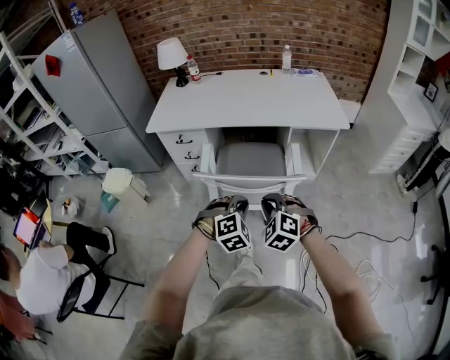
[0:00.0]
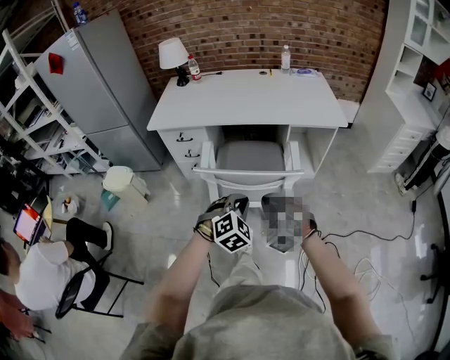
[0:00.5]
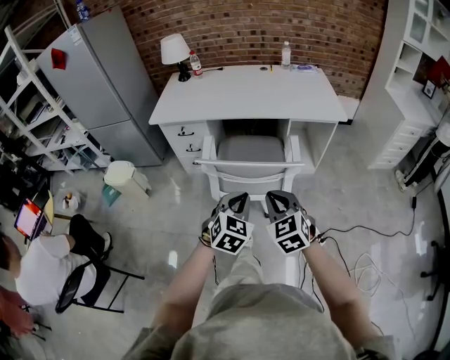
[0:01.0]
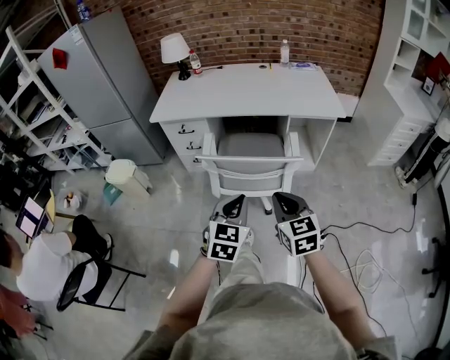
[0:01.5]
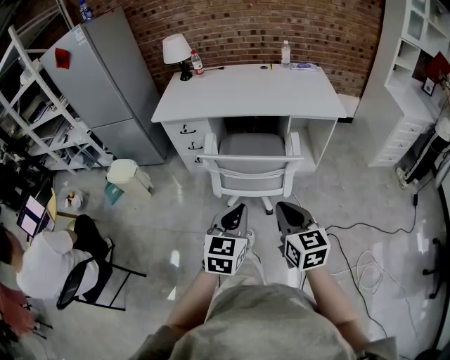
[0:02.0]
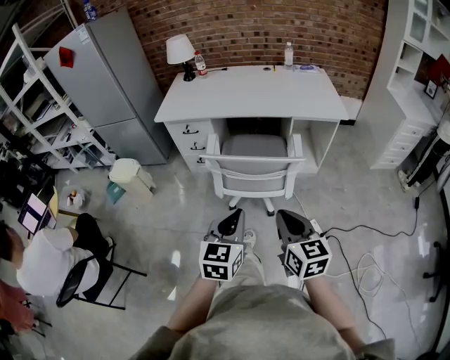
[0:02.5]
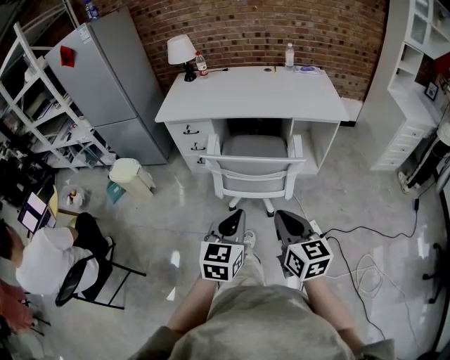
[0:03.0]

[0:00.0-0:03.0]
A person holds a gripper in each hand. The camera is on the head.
0.0 to 1.5 s: Both grippers travel together backward and upward, roughly 10 cm. The left gripper rotates around the line of its fingers by roughly 50 degrees, counterclockwise from behind; the right gripper rotates around the line of its fingers by roughly 50 degrees, clockwise from behind.
1.5 to 3.0 s: Both grippers travel together backward, roughly 5 cm.

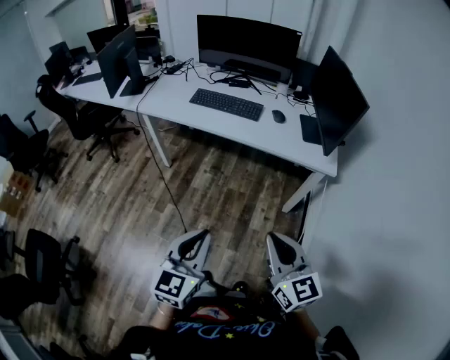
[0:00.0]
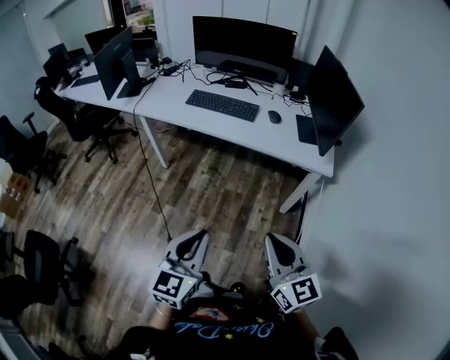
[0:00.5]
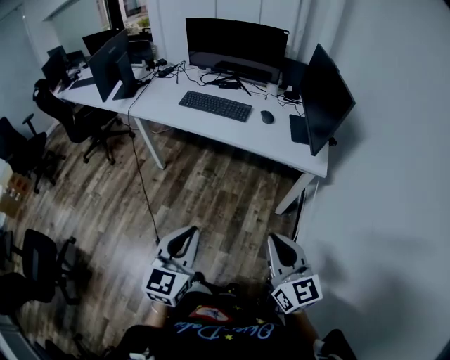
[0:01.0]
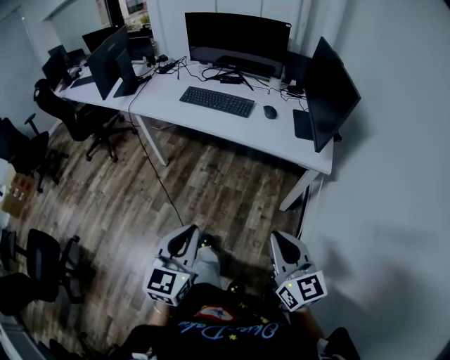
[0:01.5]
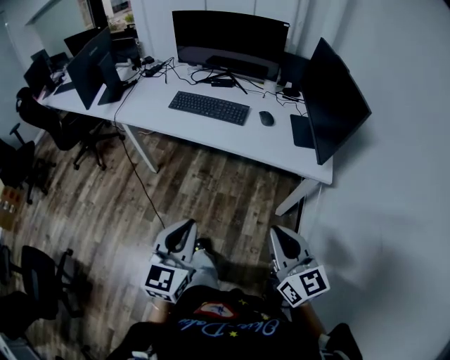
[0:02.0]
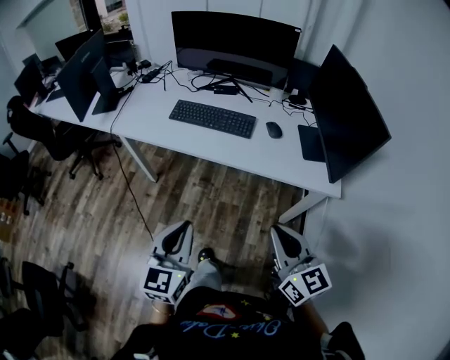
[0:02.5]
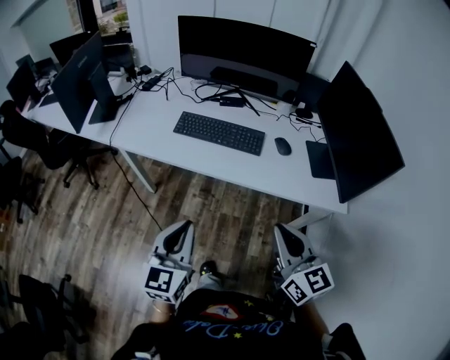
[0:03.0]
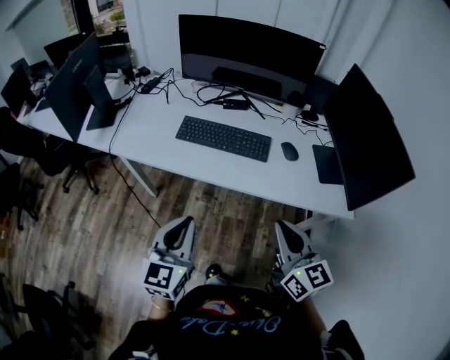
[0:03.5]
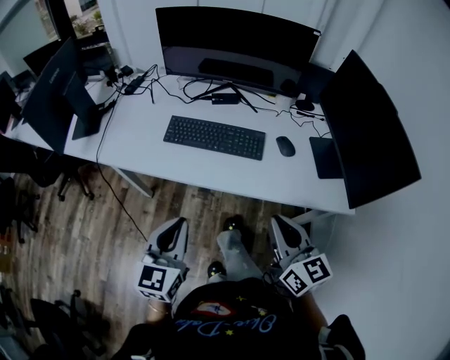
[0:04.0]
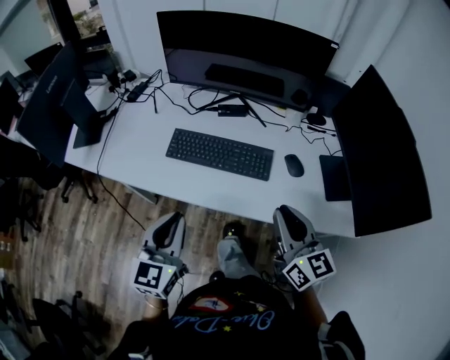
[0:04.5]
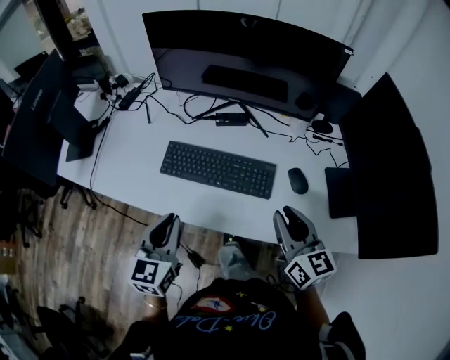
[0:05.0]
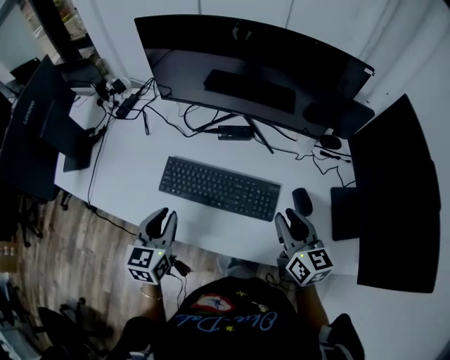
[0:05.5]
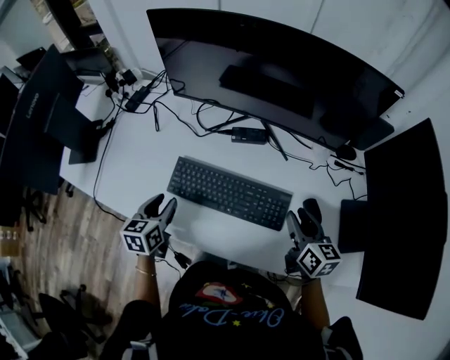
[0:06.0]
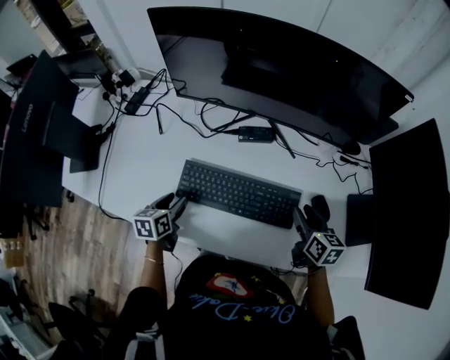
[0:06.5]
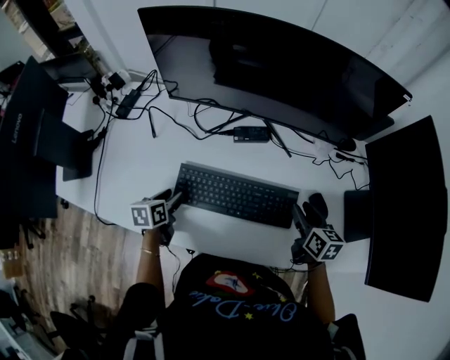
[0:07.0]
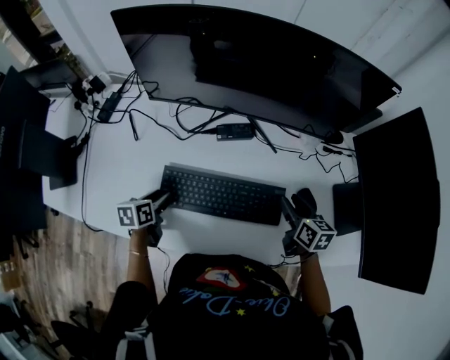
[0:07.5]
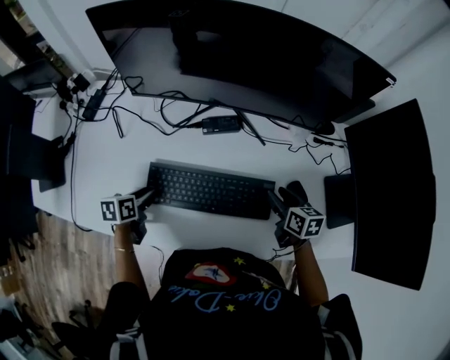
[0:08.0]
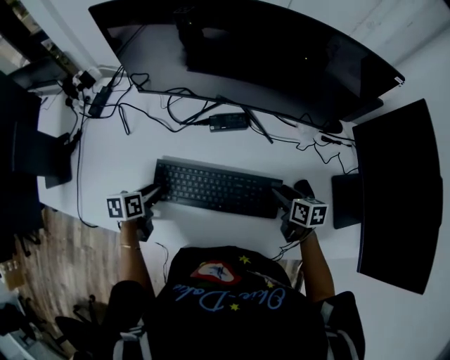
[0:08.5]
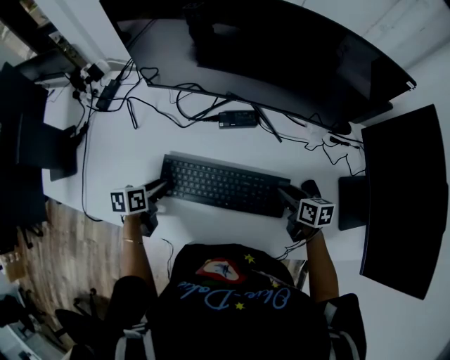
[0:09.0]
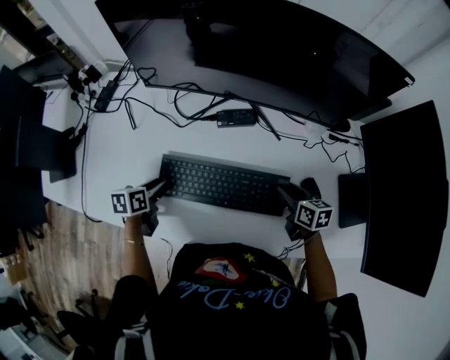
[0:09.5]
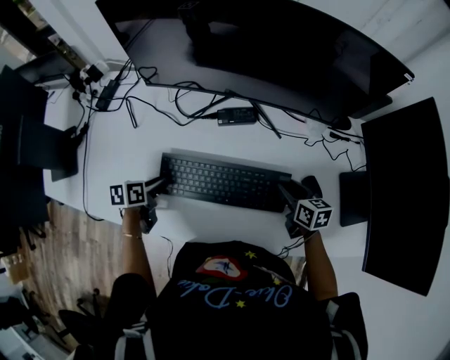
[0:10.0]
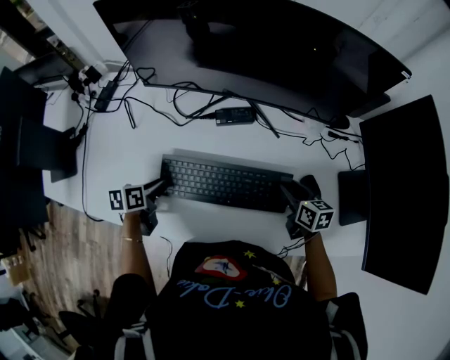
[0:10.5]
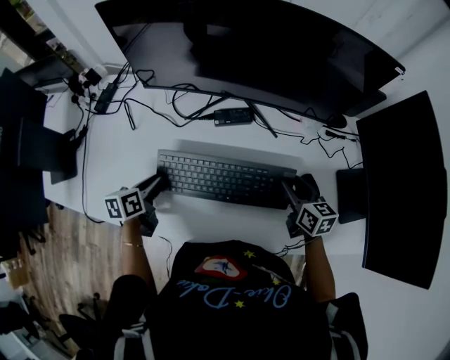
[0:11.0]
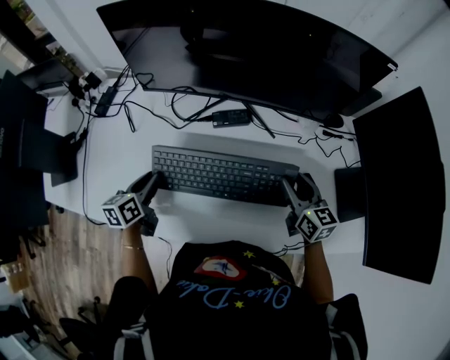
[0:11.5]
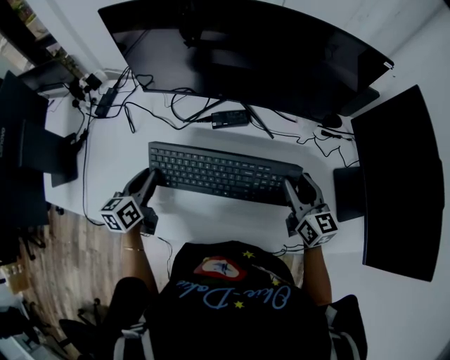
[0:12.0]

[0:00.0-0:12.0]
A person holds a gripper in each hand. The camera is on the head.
0.0 to 2.0 s: The left gripper moves forward, about 10 cm. Meanwhile the right gripper goes roughly 10 cm forward and to the right.
2.0 to 4.0 s: Both grippers travel together forward and to the left, some 30 cm.
4.0 to 6.0 s: The left gripper moves forward and downward, about 35 cm, turns by roughly 30 degrees, and opens. The right gripper shifts roughly 35 cm forward, changes its angle by some 20 degrees, and opens its fingers.
6.0 to 8.0 s: The right gripper moves downward, some 10 cm, while the left gripper shifts about 10 cm downward and forward, and turns by about 30 degrees.
8.0 to 10.0 s: The grippers move only a little.
10.0 to 12.0 s: The two grippers go approximately 10 cm upward. The left gripper rotates roughly 30 degrees, while the right gripper turns by some 30 degrees.

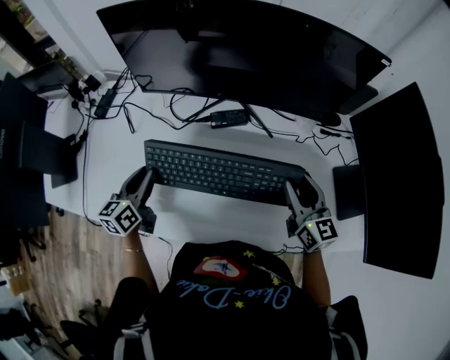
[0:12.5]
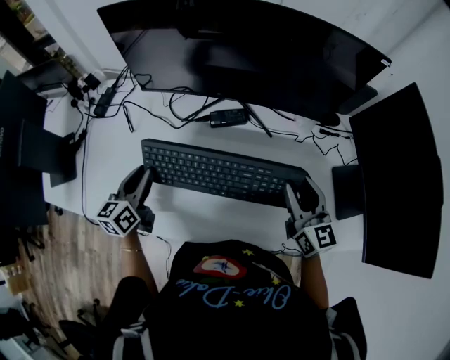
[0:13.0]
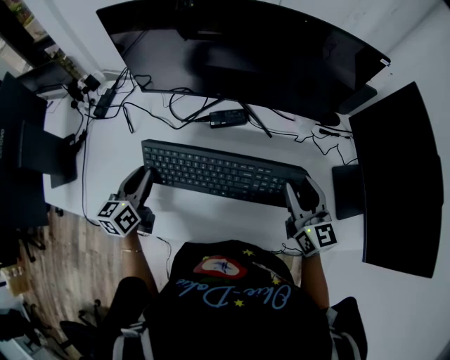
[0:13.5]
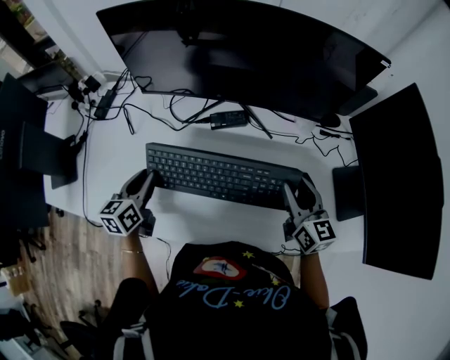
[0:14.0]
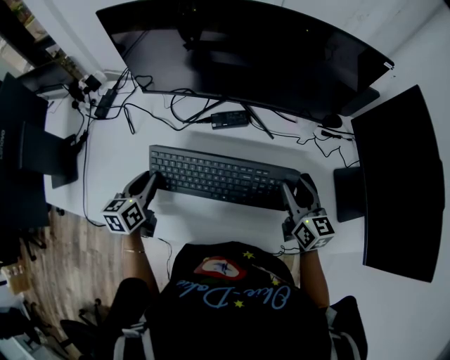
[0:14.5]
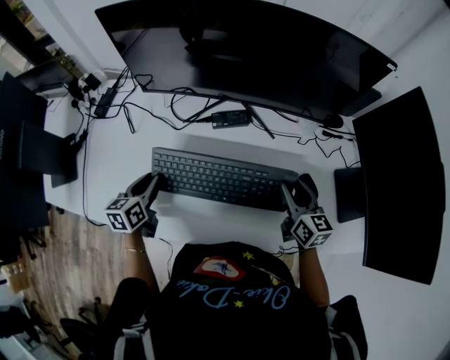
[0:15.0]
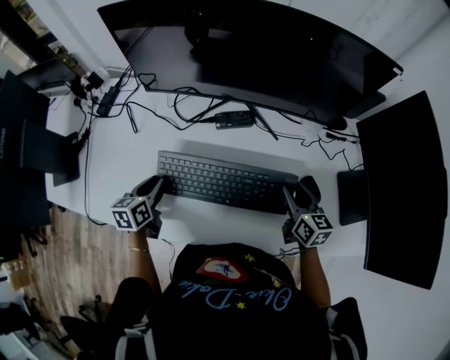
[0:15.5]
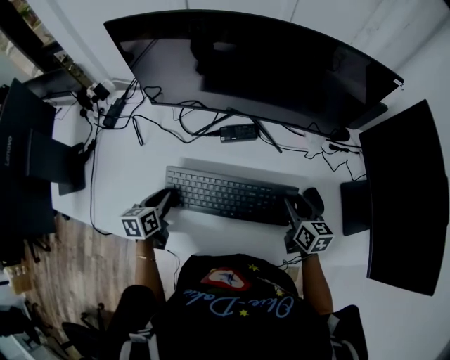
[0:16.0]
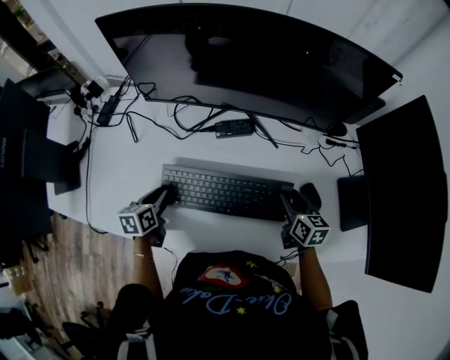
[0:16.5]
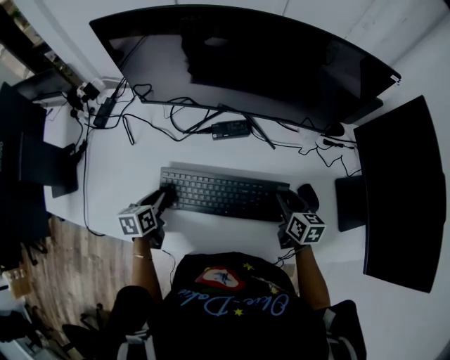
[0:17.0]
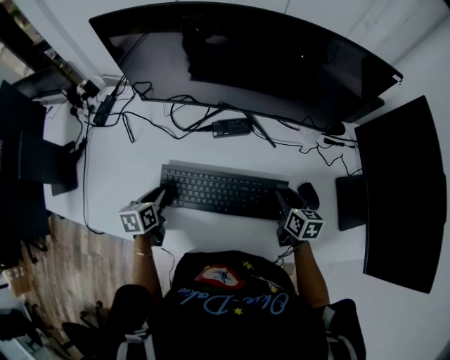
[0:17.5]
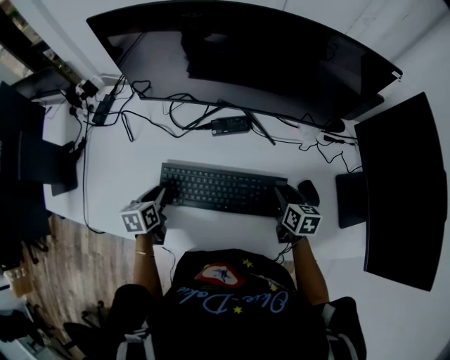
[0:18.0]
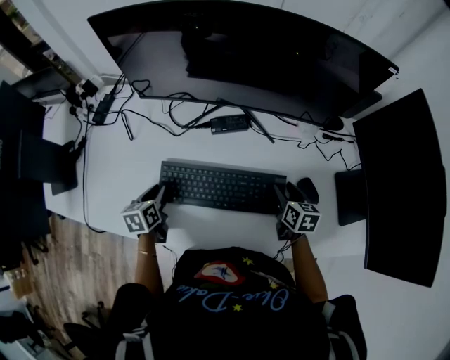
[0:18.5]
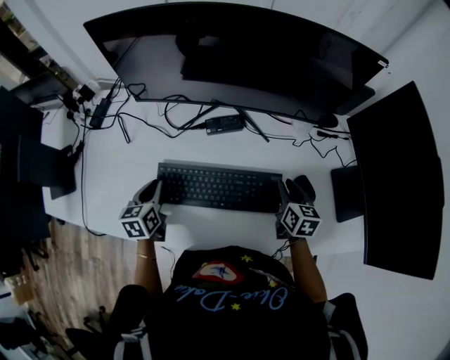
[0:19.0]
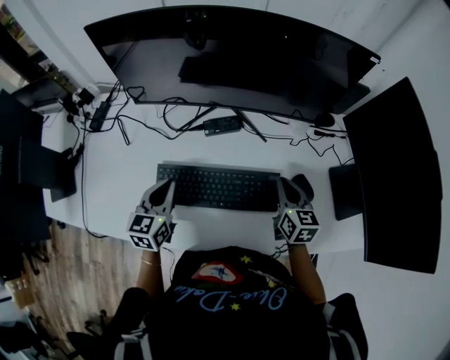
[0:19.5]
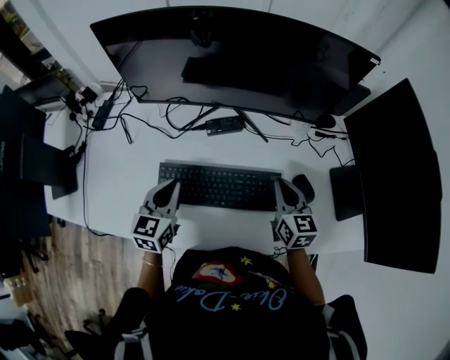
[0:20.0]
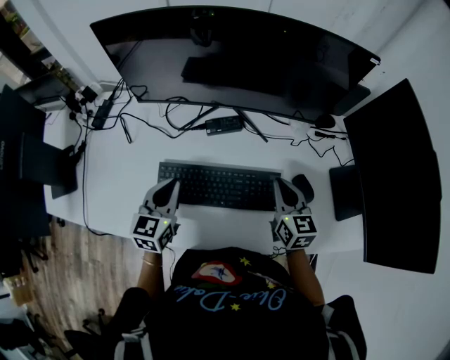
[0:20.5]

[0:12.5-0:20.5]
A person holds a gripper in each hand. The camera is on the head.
12.5 to 14.5 s: The grippers move only a little.
14.5 to 16.5 s: The two grippers go roughly 10 cm downward.
16.5 to 18.5 s: The grippers stay close to where they were, moving slightly.
18.5 to 20.5 s: The left gripper goes approximately 15 cm upward and to the right, swivels some 40 degrees, and closes; the right gripper shifts some 10 cm upward, changes its angle by roughly 20 degrees, and closes its fingers.

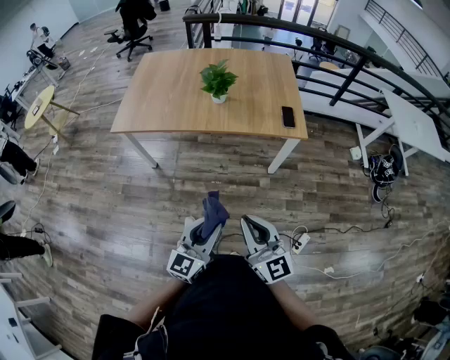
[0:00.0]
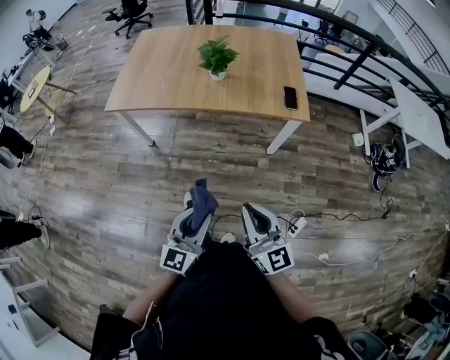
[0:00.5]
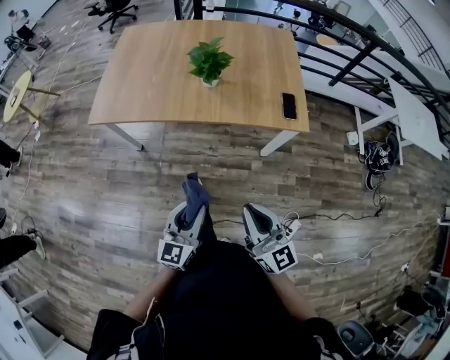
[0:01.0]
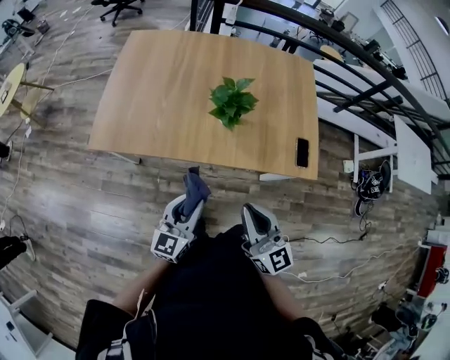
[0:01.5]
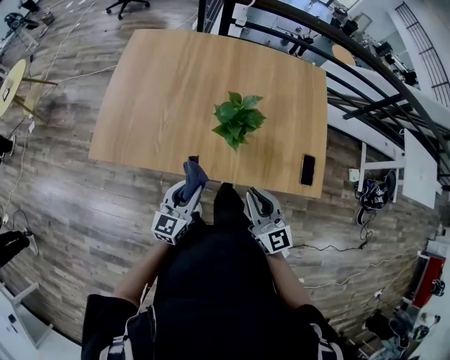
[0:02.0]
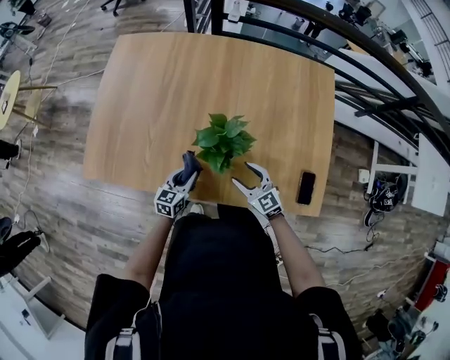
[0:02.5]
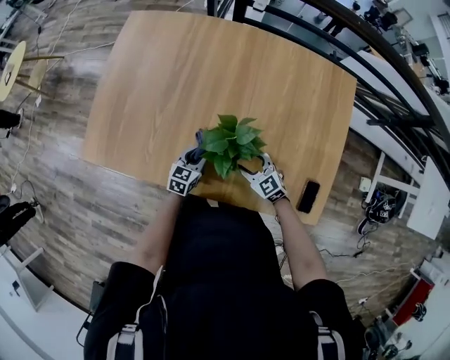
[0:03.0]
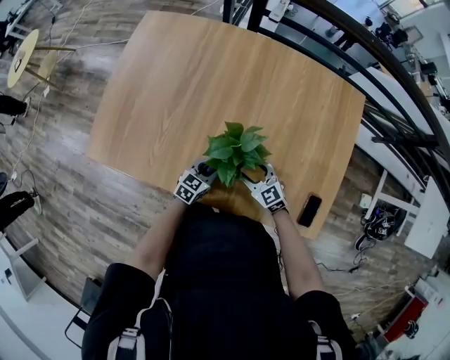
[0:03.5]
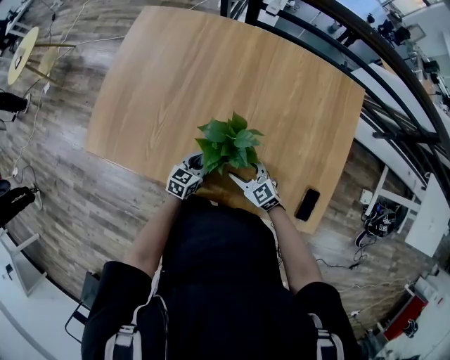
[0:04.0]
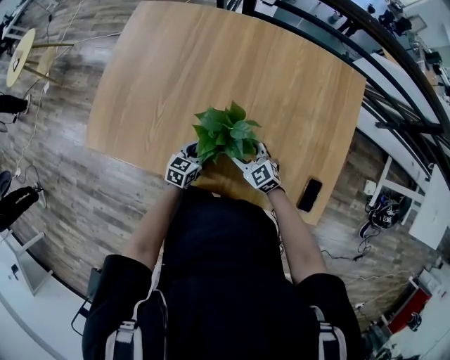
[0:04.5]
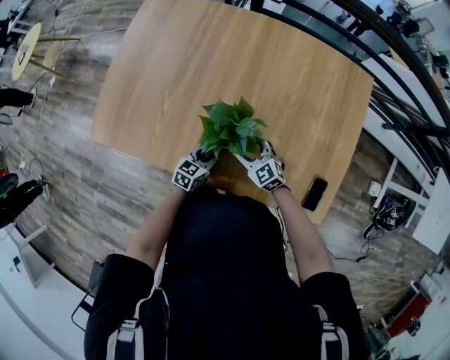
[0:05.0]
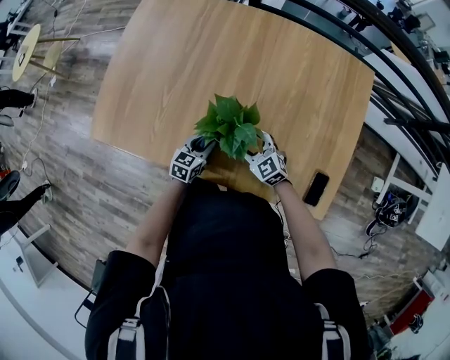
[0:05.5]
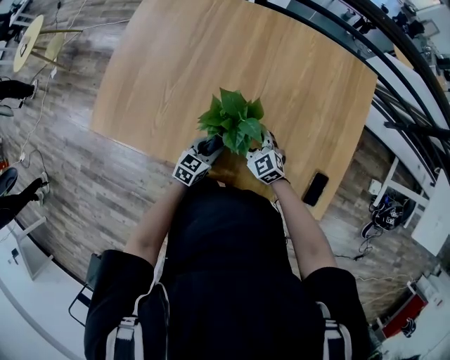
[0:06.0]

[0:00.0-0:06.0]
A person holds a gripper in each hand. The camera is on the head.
0.0 to 2.0 s: The two grippers travel together, forward, approximately 40 cm.
2.0 to 4.0 s: The right gripper shifts roughly 25 cm downward and forward, rotates about 40 degrees, and opens its fingers. Meanwhile the left gripper travels downward, forward and to the right by some 25 cm, and changes its angle by about 20 degrees.
4.0 to 6.0 s: The grippers make only small movements.
